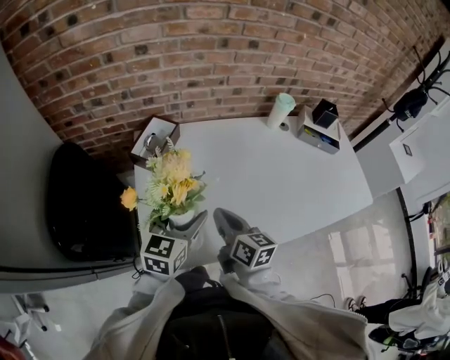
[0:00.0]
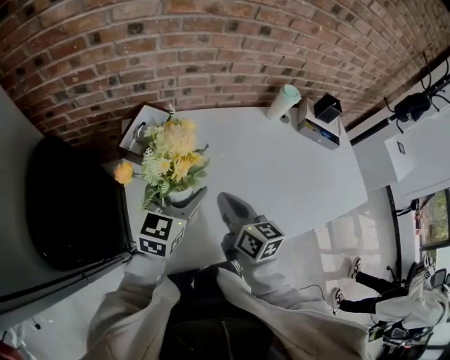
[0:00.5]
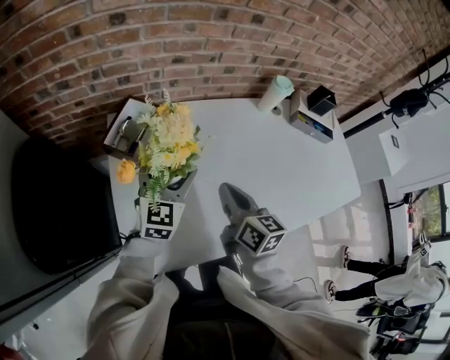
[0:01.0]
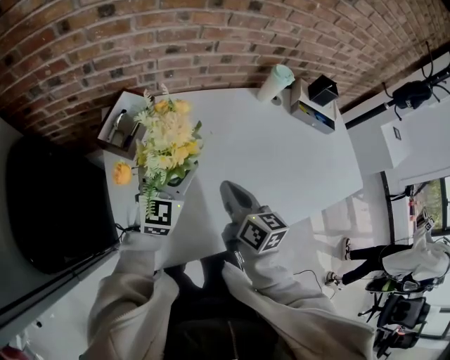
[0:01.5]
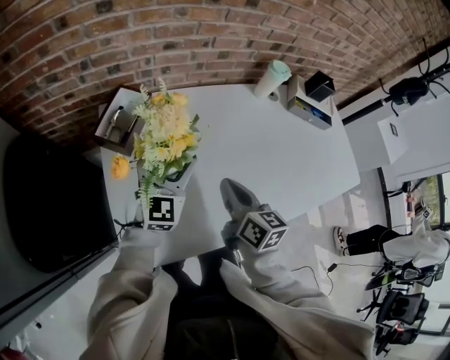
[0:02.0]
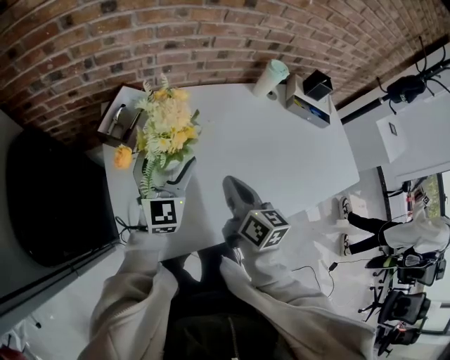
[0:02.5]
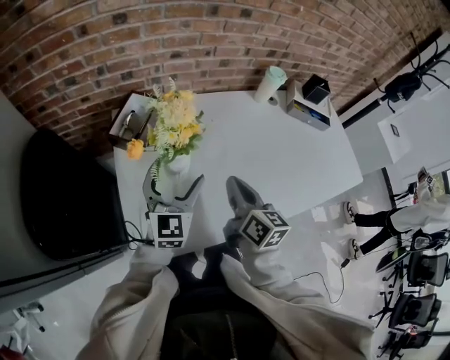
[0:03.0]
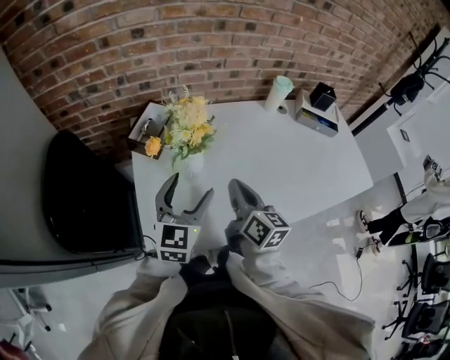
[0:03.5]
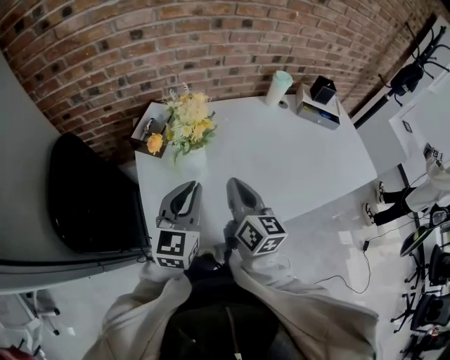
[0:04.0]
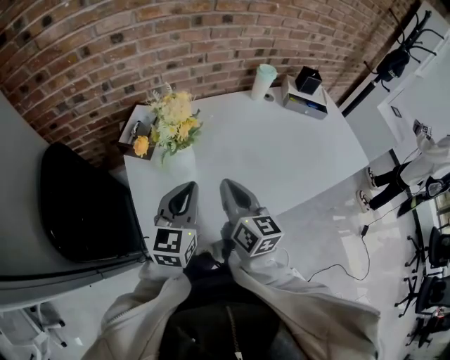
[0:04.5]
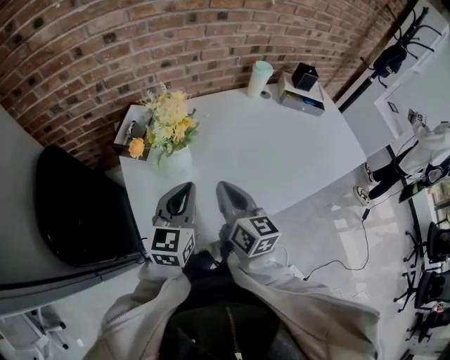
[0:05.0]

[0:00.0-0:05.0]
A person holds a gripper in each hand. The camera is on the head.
0:00.0 to 0:02.5: The right gripper moves to the right and forward, roughly 10 cm. Meanwhile the left gripper shifts approximately 10 cm forward, and rotates approximately 30 degrees.
0:02.5 to 0:05.0: The left gripper is displaced backward by some 15 cm, changes its angle by approximately 20 degrees, and closes its fingers; the right gripper moves backward, roughly 10 cm.

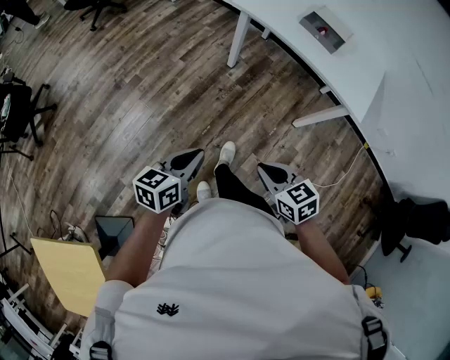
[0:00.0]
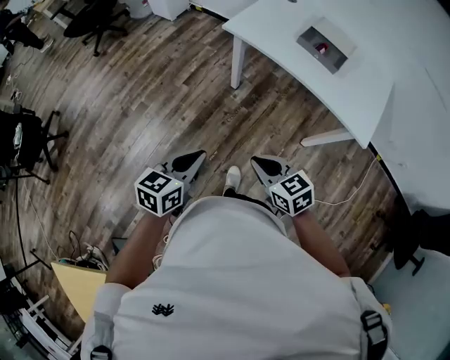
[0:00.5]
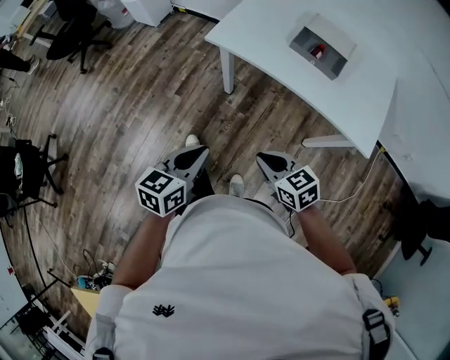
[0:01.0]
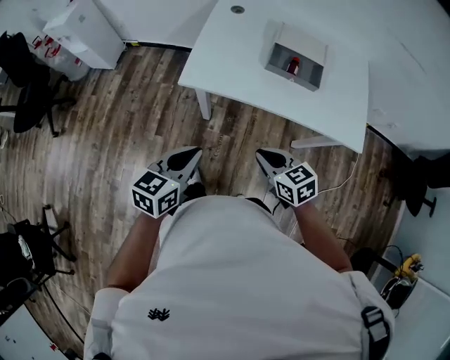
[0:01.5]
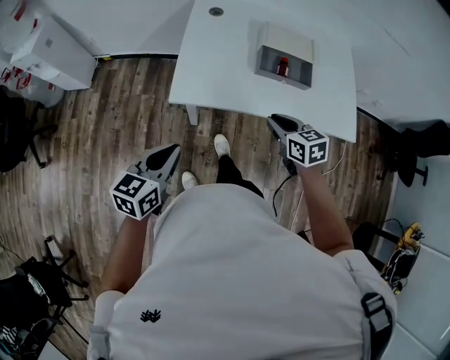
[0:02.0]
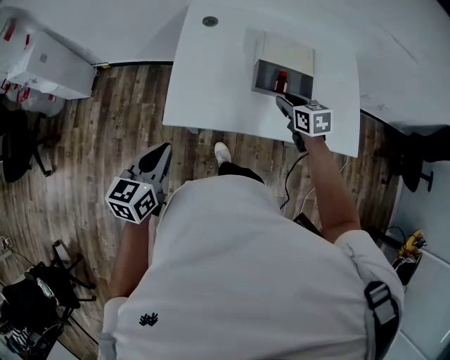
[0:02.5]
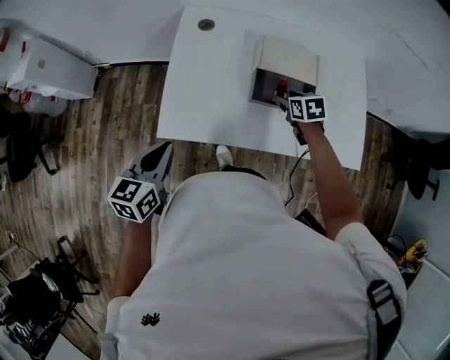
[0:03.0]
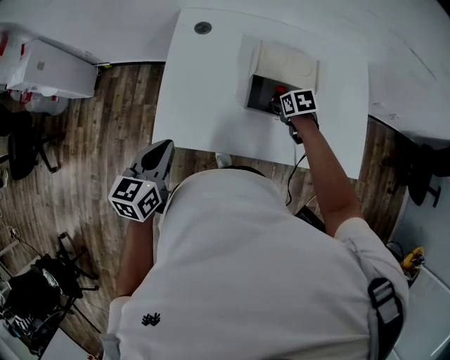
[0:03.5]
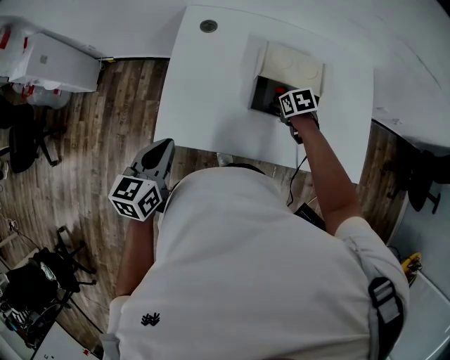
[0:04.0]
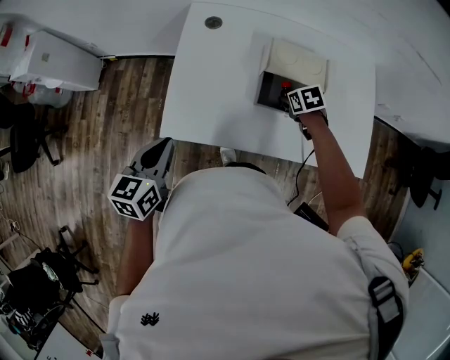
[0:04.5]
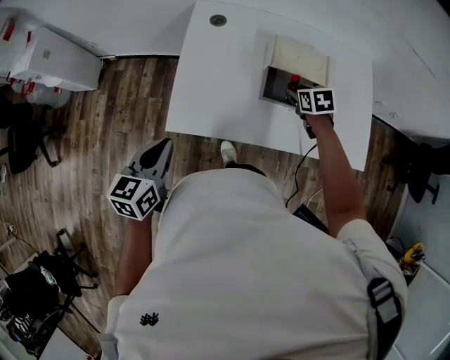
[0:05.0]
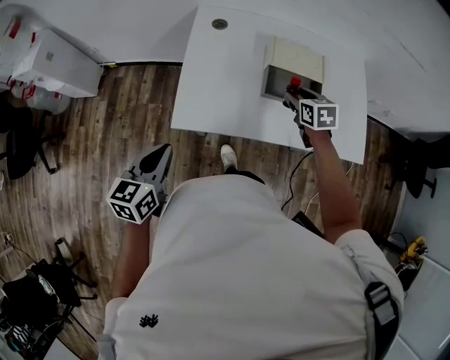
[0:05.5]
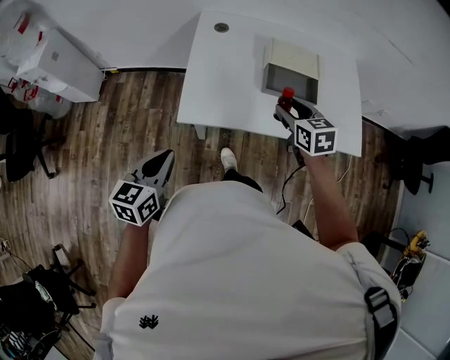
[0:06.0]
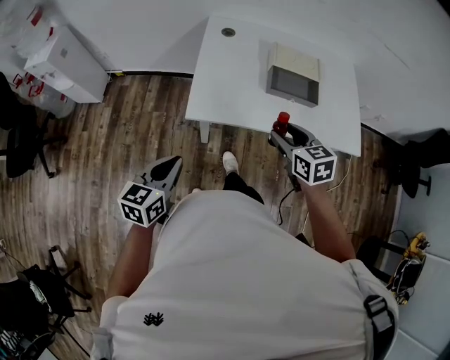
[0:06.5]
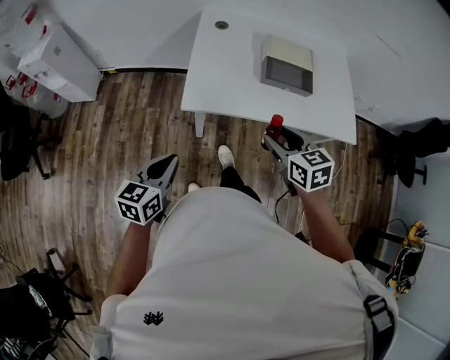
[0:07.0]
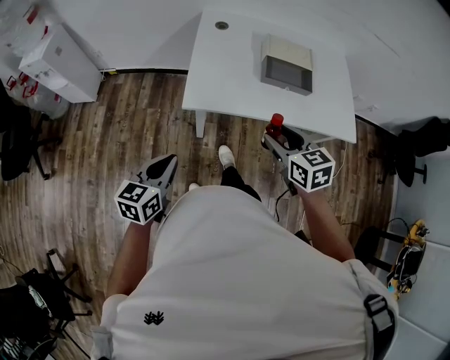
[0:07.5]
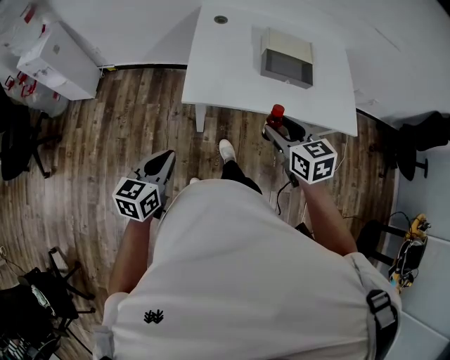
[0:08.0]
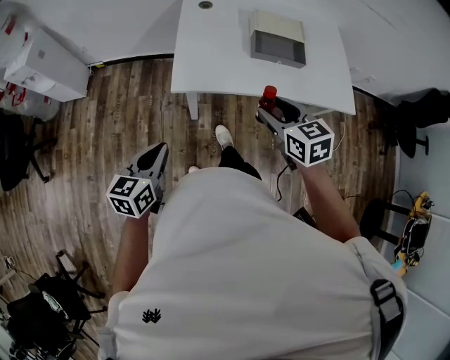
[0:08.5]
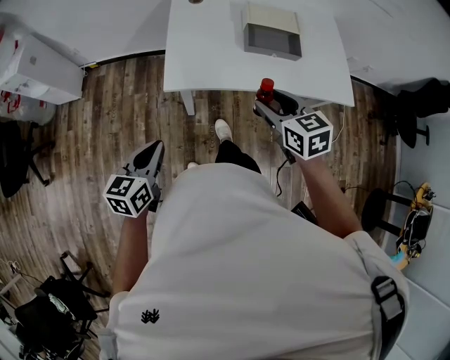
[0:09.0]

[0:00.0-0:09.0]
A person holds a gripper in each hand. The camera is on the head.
0:00.0 to 0:02.0: The pair of grippers is taken about 50 cm. The left gripper rotates roughly 30 degrees. The right gripper turns by roughly 40 degrees.
0:02.0 to 0:04.5: The left gripper heads forward, covering some 15 cm. Meanwhile the right gripper is displaced forward, downward and to the right by approximately 30 cm, turns by approximately 30 degrees, and opens.
0:04.5 to 0:07.0: The right gripper travels backward, upward and to the left by some 40 cm, and tilts its fingers about 30 degrees upward; the left gripper is displaced backward and to the left by approximately 20 cm.
0:07.0 to 0:09.0: There are only small adjustments of the grippers.

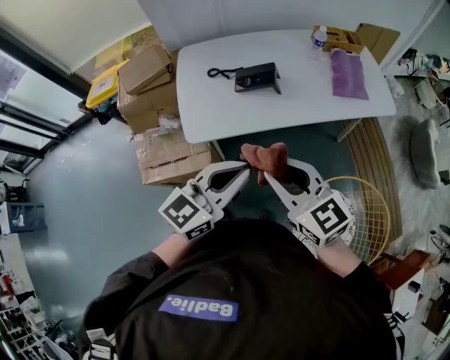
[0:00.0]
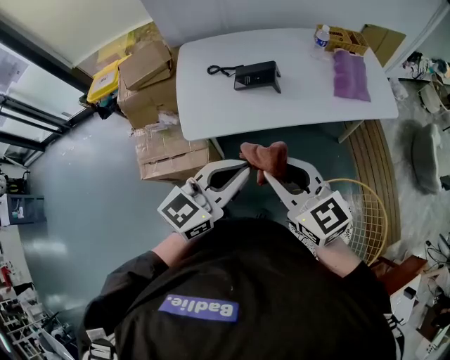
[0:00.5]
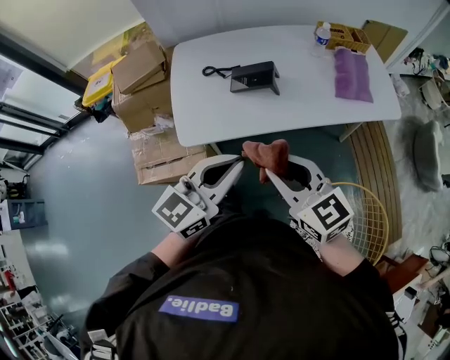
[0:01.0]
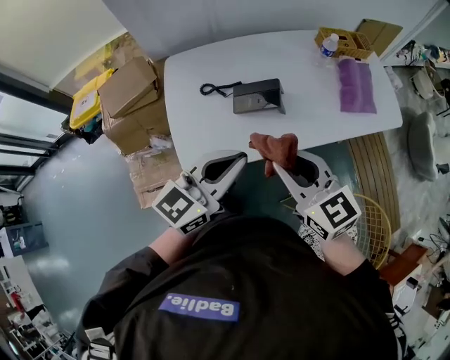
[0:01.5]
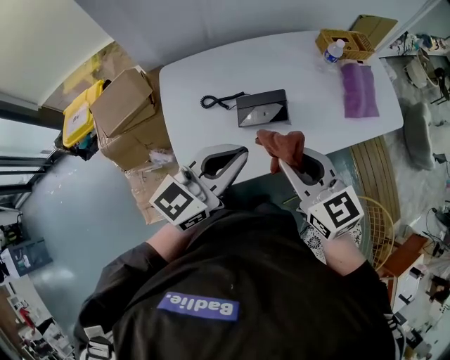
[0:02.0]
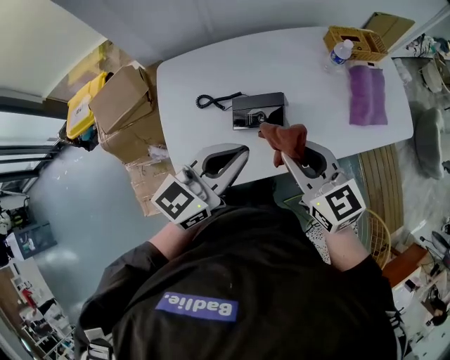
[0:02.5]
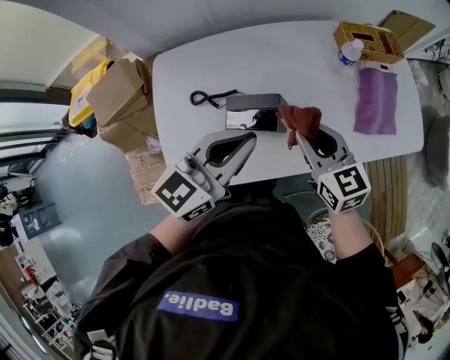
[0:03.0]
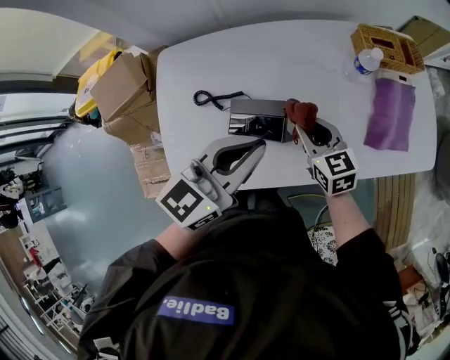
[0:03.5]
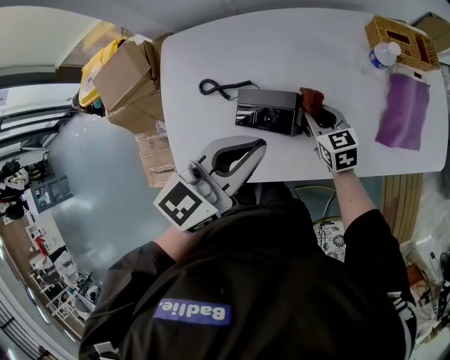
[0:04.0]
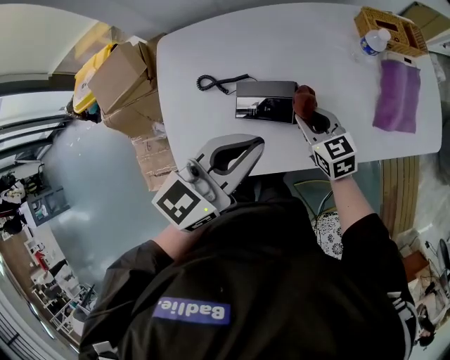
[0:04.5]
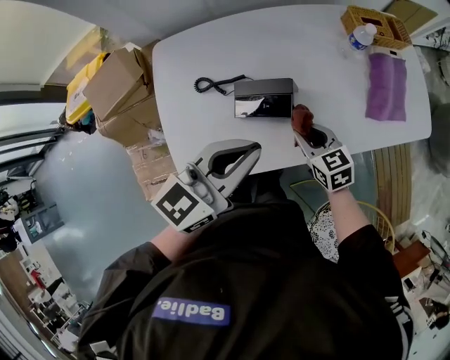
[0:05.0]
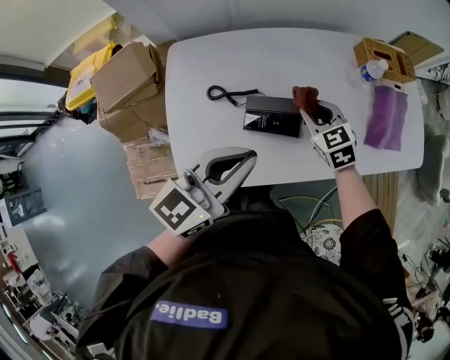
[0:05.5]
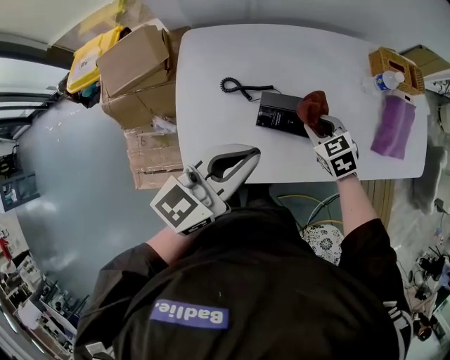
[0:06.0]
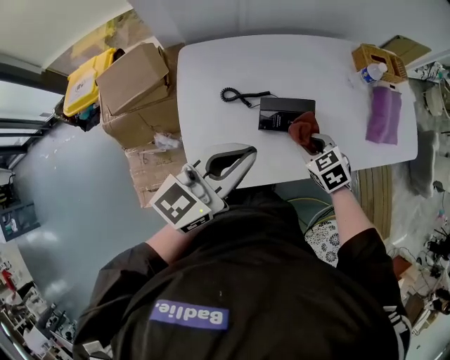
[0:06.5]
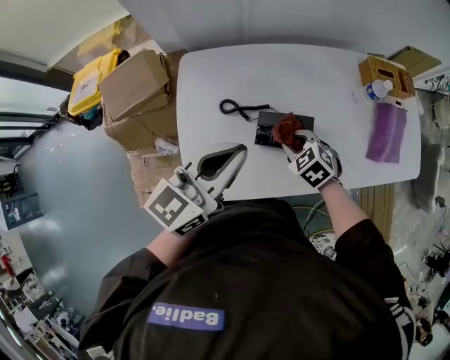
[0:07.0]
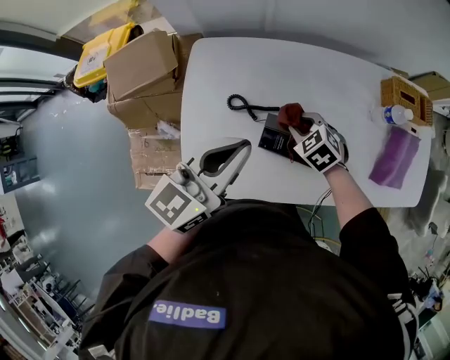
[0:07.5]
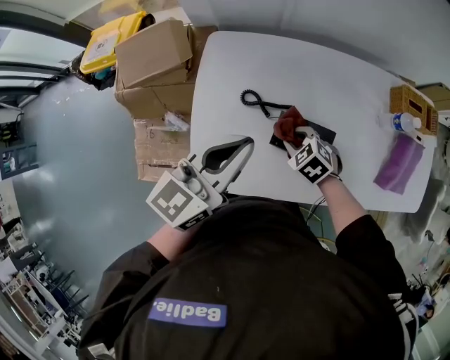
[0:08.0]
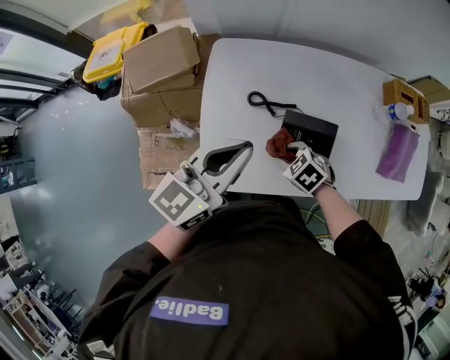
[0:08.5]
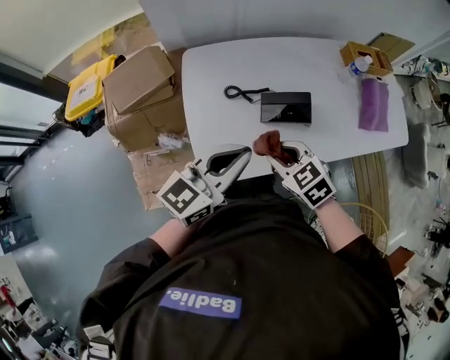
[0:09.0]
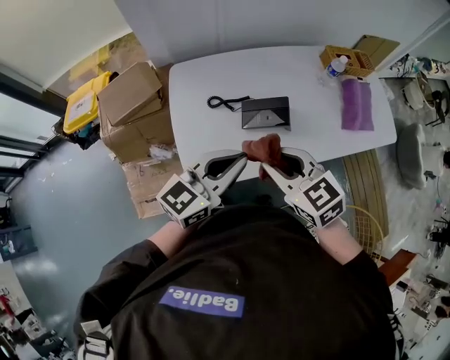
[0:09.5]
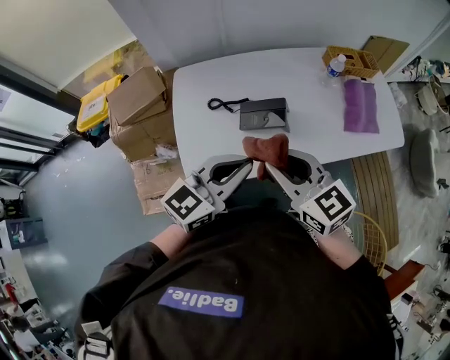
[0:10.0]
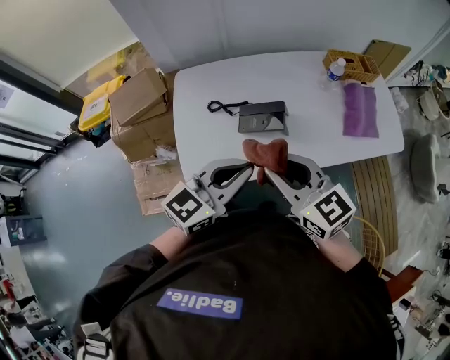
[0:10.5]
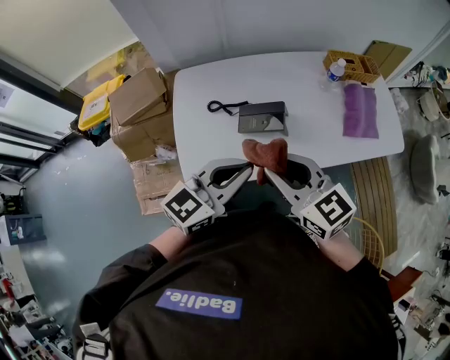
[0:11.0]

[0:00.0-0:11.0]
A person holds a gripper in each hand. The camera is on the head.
0:00.0 to 0:02.0: Both grippers move forward, roughly 25 cm.
0:02.0 to 0:03.5: The left gripper moves forward and to the right, some 15 cm, while the right gripper moves forward, downward and to the right, some 30 cm.
0:03.5 to 0:05.5: The left gripper travels to the left and backward by roughly 10 cm. The right gripper goes about 5 cm to the left, travels backward and back again, roughly 10 cm each way, and changes its angle by approximately 20 degrees.
0:05.5 to 0:07.5: The right gripper heads to the left and downward, covering some 10 cm, reaches about 10 cm backward, then returns, and turns by some 30 degrees, while the left gripper heads forward and to the left, covering about 10 cm.
0:07.5 to 0:09.0: The right gripper travels backward, to the left and upward by about 25 cm, and changes its angle by roughly 20 degrees; the left gripper is displaced backward and to the left by approximately 15 cm.
0:09.0 to 0:11.0: The left gripper travels to the right by about 10 cm, while the right gripper shifts roughly 20 cm upward and to the right, and points its fingers some 30 degrees further upward.

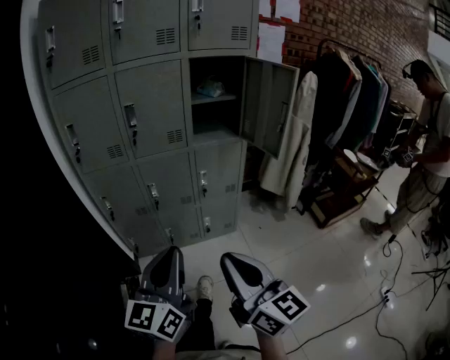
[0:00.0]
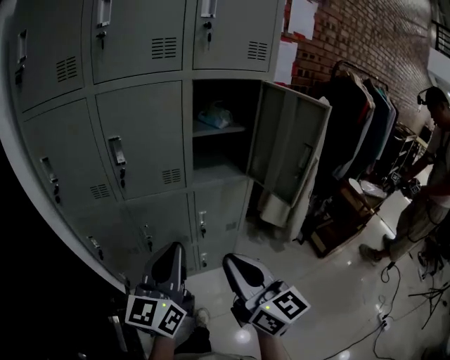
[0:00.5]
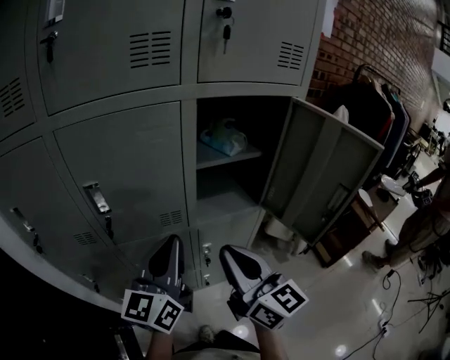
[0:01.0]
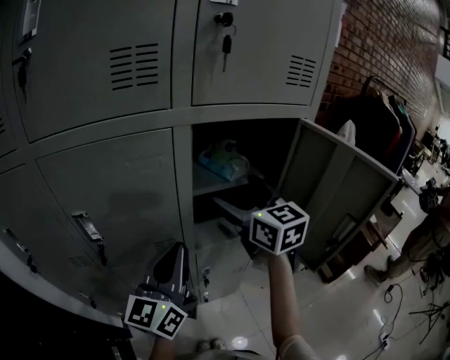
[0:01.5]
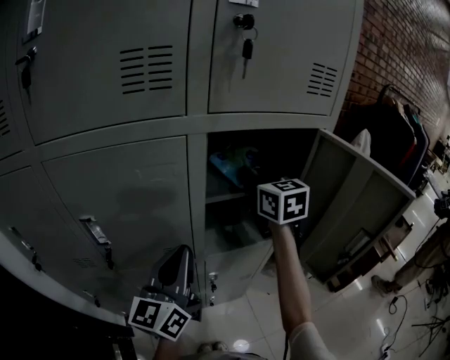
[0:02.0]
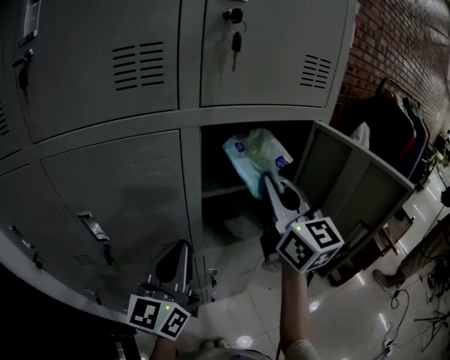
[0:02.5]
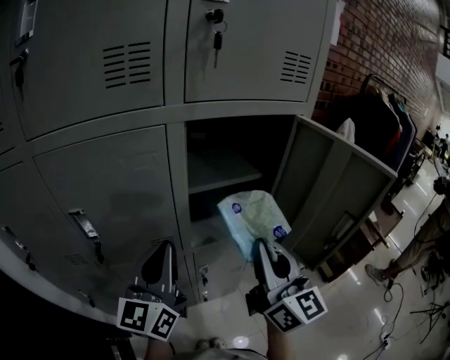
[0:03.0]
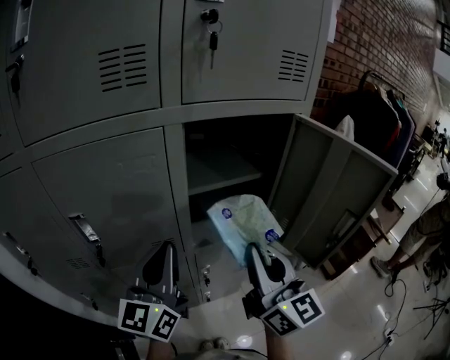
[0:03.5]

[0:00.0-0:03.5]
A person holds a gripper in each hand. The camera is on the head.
0:00.0 to 0:02.0: Both grippers are carried forward, roughly 60 cm. The right gripper rotates approximately 30 degrees, and opens, then closes once more.
0:02.0 to 0:03.5: The right gripper shifts approximately 25 cm backward, and changes its angle by approximately 30 degrees.
